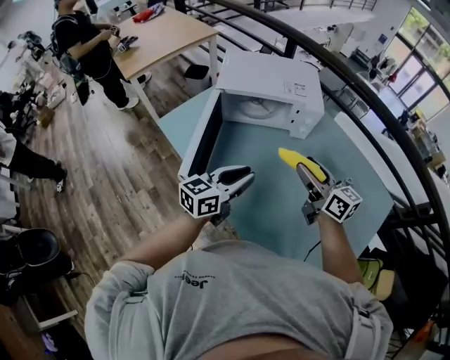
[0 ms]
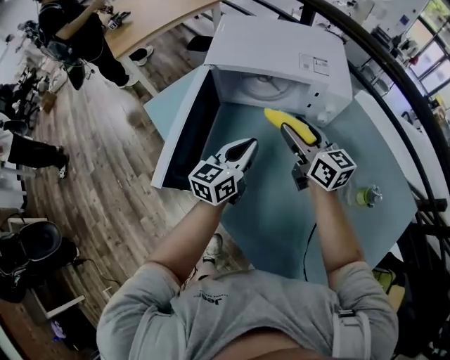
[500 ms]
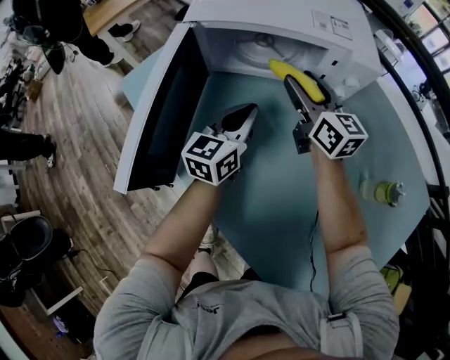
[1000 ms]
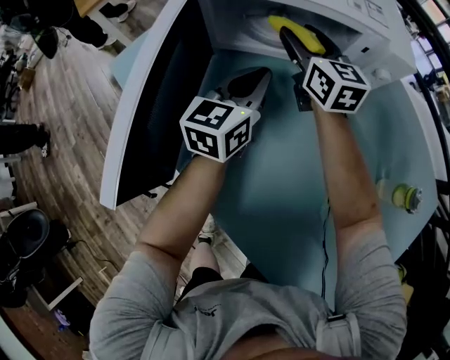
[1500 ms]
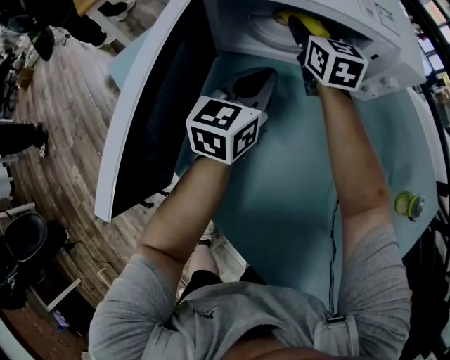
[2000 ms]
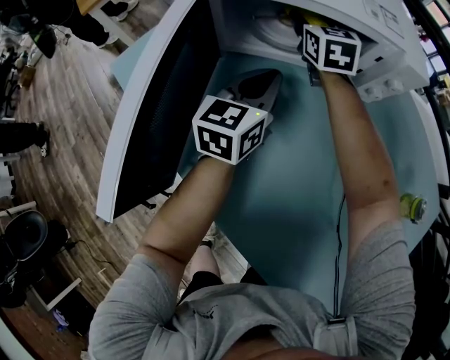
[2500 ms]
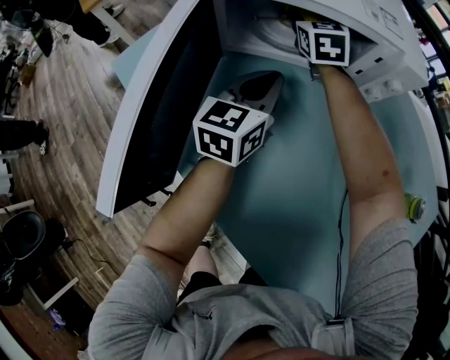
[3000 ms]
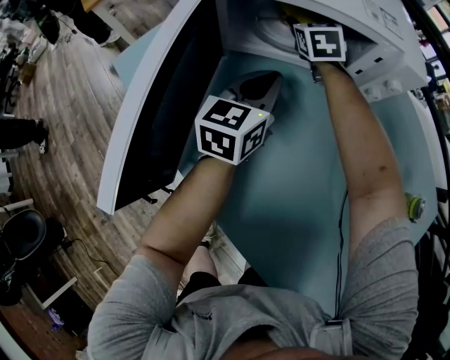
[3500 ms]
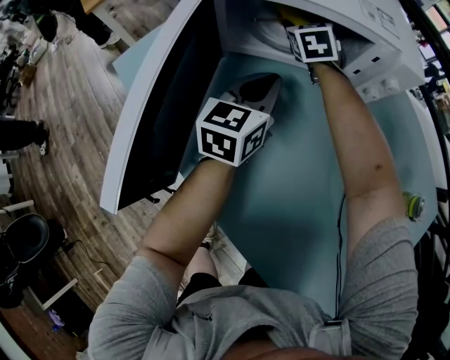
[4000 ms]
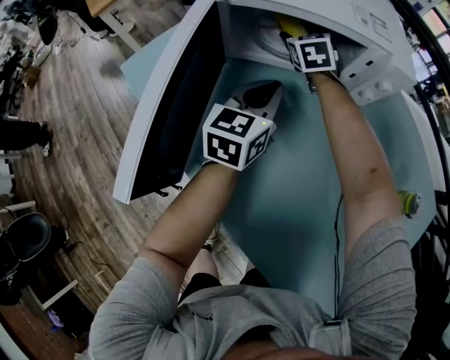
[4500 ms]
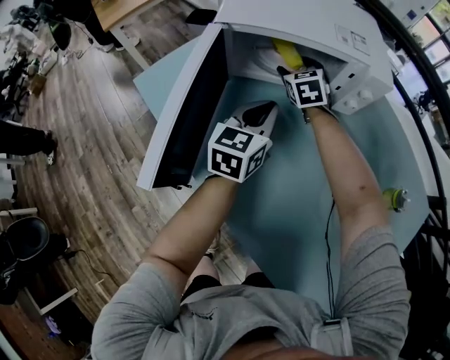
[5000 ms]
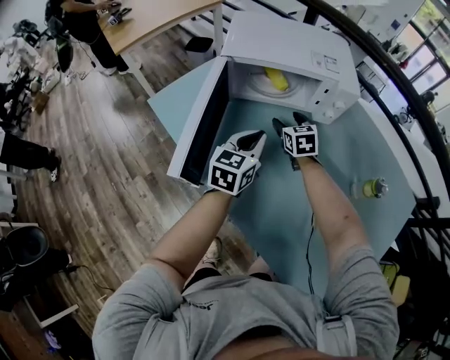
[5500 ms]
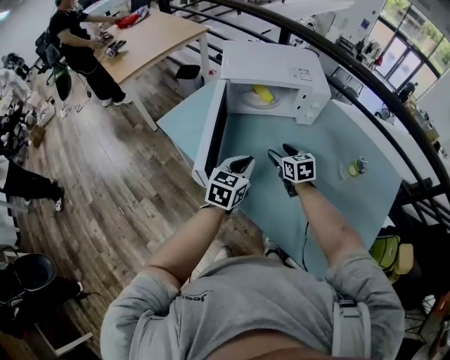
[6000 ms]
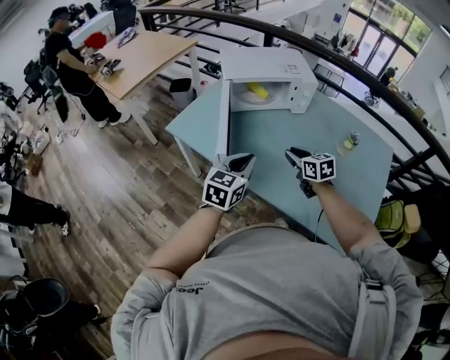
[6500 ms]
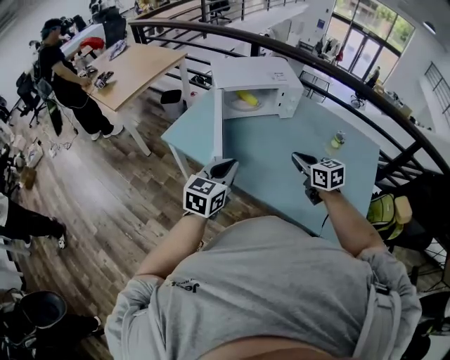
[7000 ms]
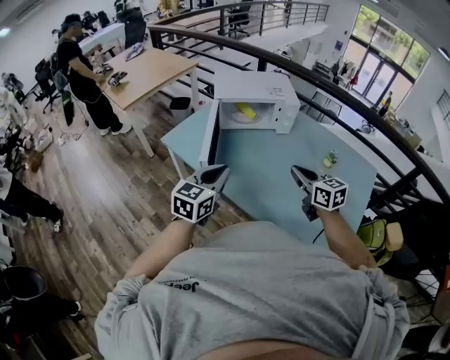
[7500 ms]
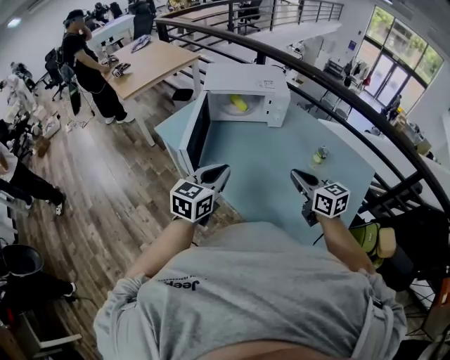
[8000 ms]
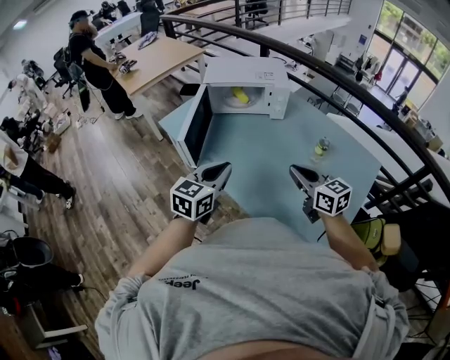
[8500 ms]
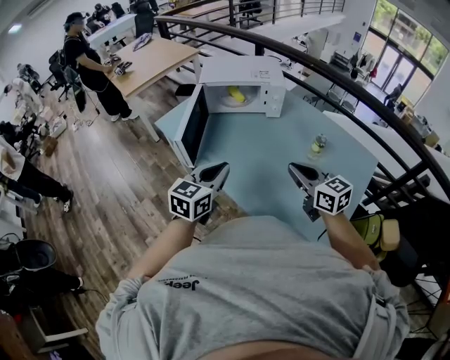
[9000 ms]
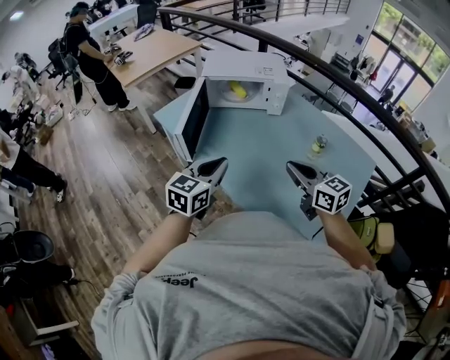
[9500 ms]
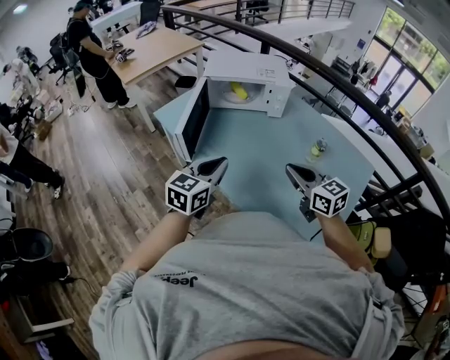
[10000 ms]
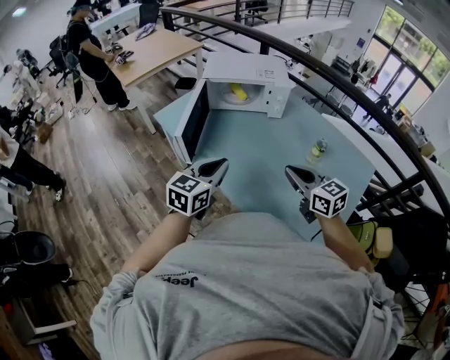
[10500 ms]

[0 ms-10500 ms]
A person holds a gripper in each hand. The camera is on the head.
0 ms to 2000 ms: Both grippers move forward and downward, roughly 35 cm. The left gripper changes its angle by some 20 degrees. Meanwhile the right gripper rotates approximately 30 degrees.
2000 ms to 4000 ms: The right gripper shifts by some 5 cm, and rotates roughly 20 degrees.
4000 ms to 6500 ms: The left gripper is displaced backward and upward by some 35 cm, and turns by about 20 degrees; the right gripper travels backward by approximately 40 cm, turns by approximately 30 degrees, and closes its fingers.
6500 ms to 8500 ms: Both grippers move to the right, backward and upward, some 20 cm. The right gripper rotates roughly 20 degrees.
8500 ms to 10500 ms: The grippers make only small movements.

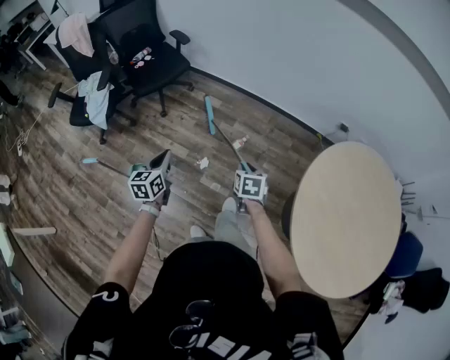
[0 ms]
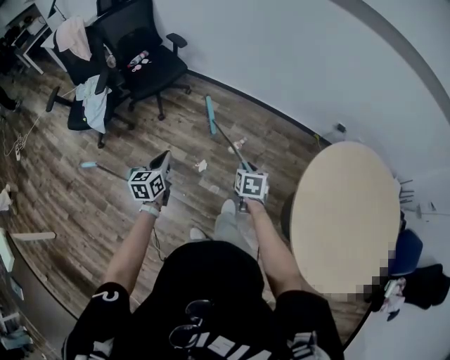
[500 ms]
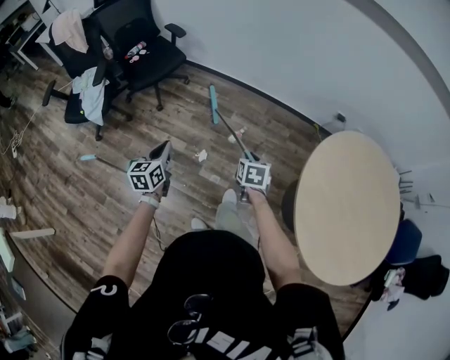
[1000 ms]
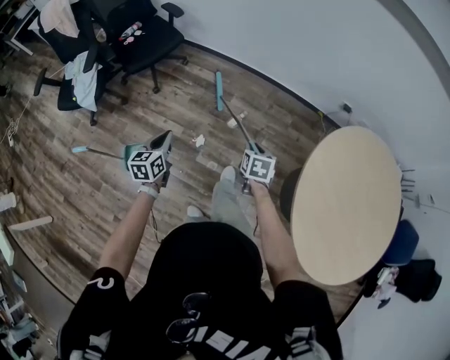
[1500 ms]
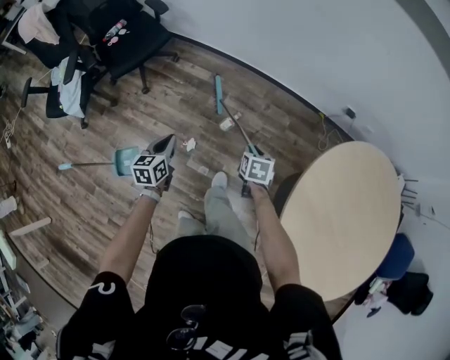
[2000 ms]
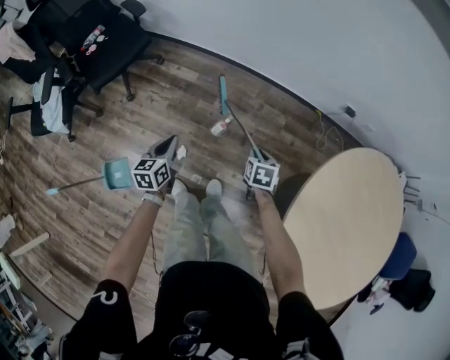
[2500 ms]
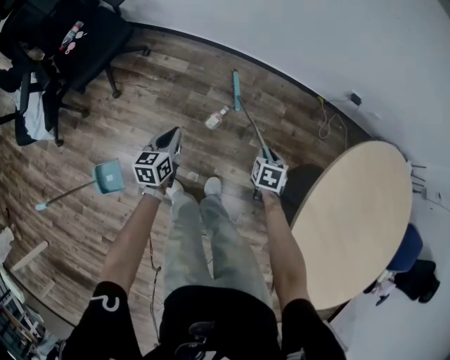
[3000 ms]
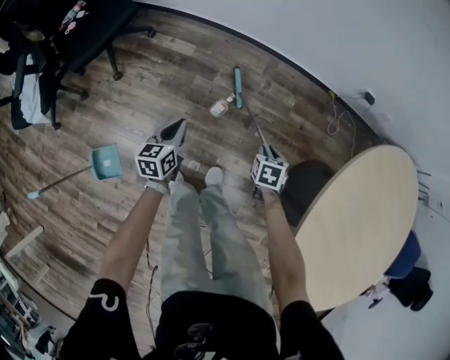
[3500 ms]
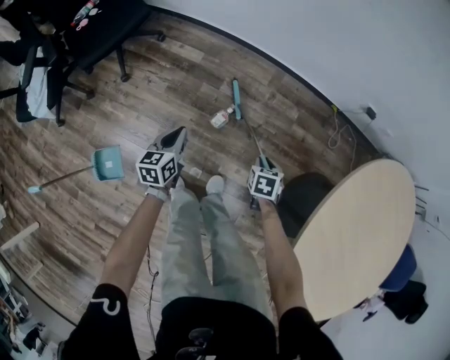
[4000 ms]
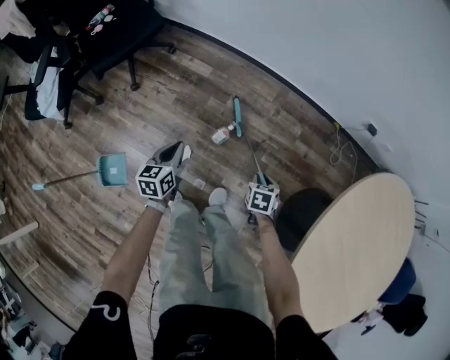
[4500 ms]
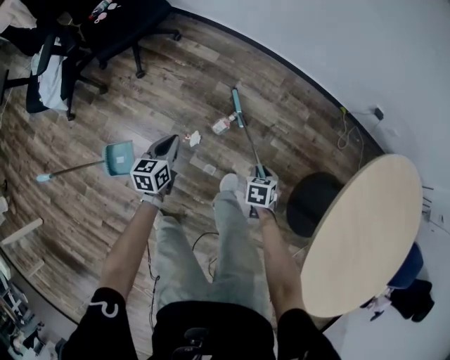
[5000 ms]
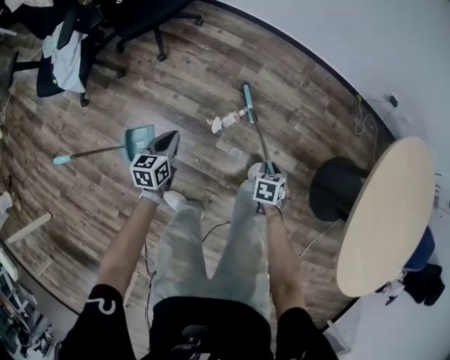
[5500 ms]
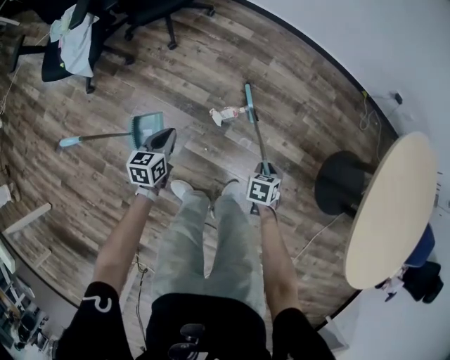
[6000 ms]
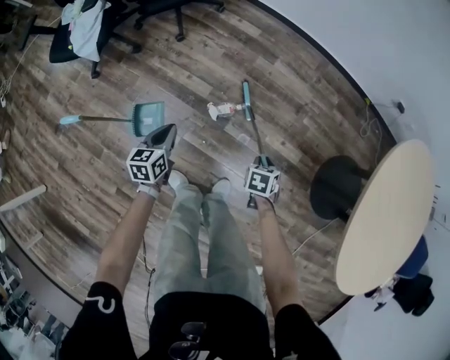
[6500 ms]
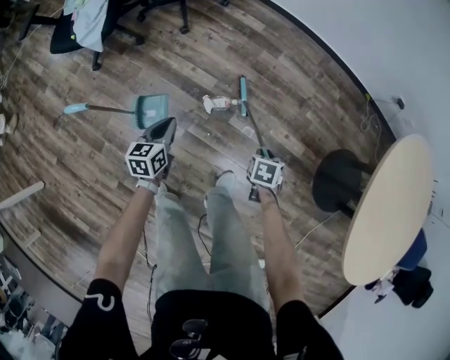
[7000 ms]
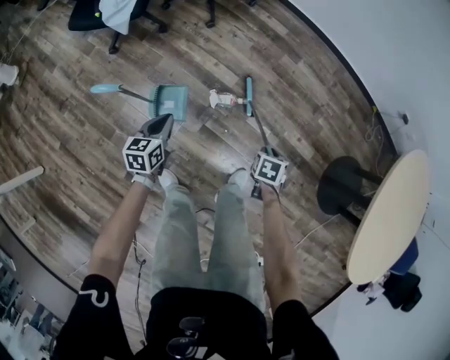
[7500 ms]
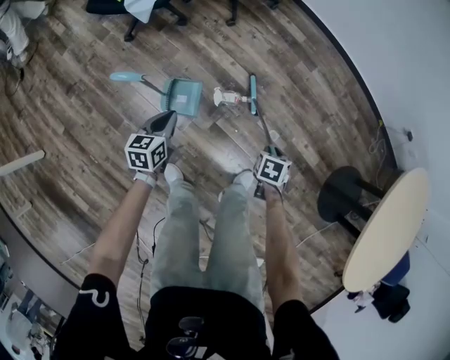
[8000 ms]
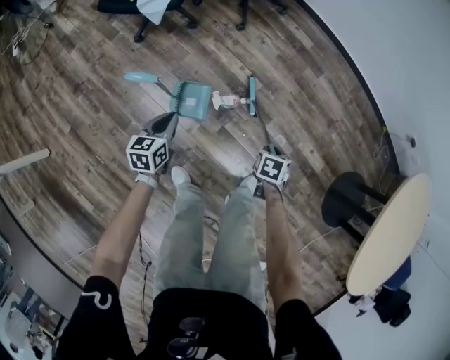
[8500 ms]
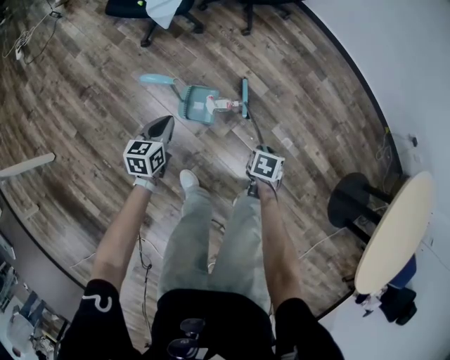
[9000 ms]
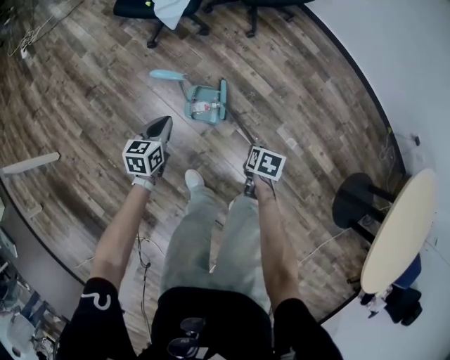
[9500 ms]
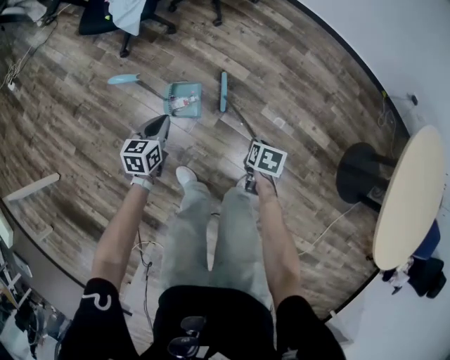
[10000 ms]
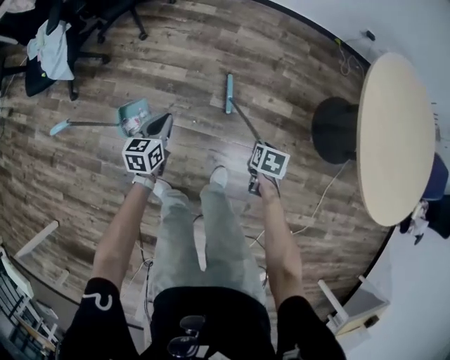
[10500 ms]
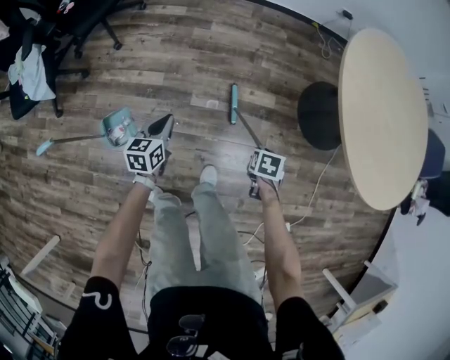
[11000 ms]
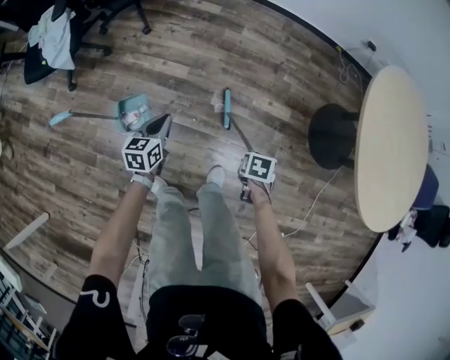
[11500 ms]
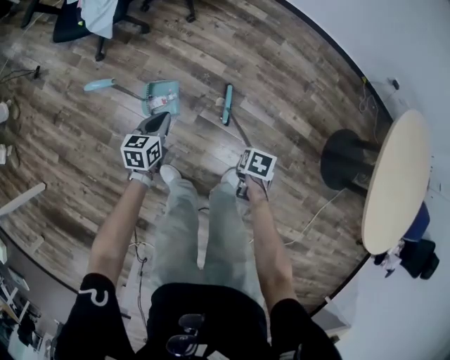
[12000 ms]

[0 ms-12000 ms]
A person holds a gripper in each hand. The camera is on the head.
0 ms to 2000 ms: The two grippers go about 25 cm forward, downward and to the right.
2000 ms to 4000 ms: The left gripper shifts some 25 cm downward and forward. Meanwhile the right gripper heads downward, covering roughly 25 cm.
4000 ms to 6000 ms: Both grippers move backward and to the left, about 40 cm.
6000 ms to 8000 ms: Both grippers move to the left and backward, approximately 25 cm.
8000 ms to 10000 ms: Both grippers move backward, approximately 5 cm. The right gripper goes to the left and returns, about 15 cm each way; the left gripper travels to the left and back again, some 10 cm each way.

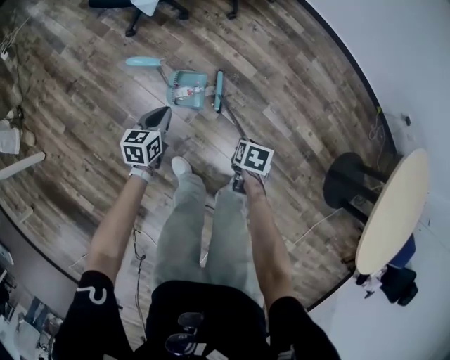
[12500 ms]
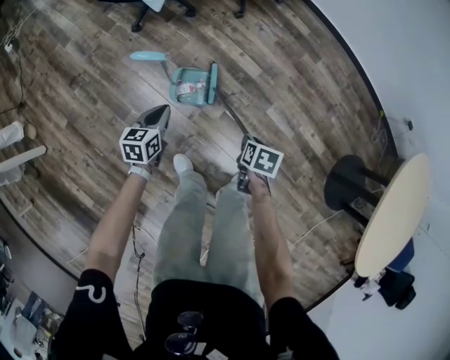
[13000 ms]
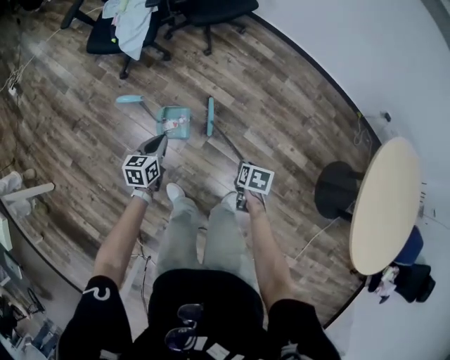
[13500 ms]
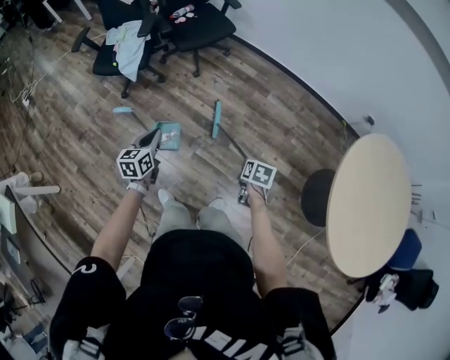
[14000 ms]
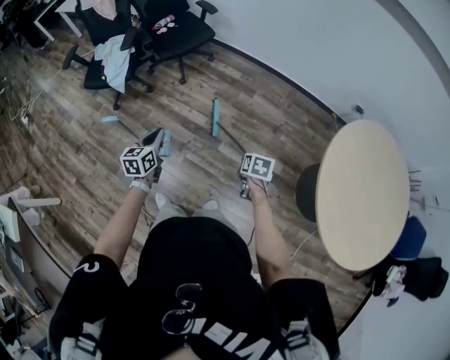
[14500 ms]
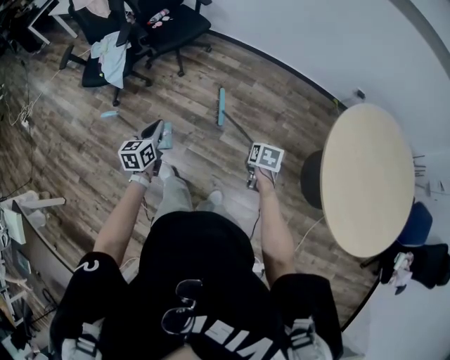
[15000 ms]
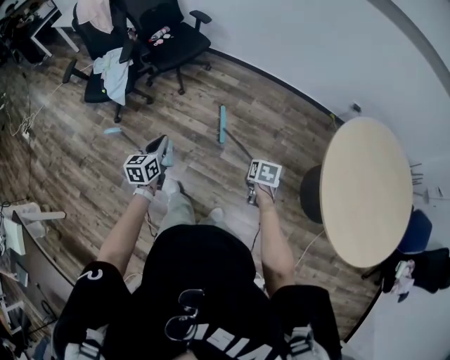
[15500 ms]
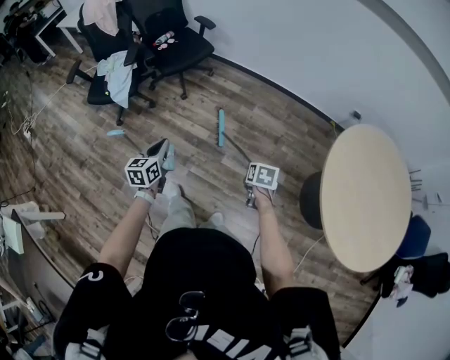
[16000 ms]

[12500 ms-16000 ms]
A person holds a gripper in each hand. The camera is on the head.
12500 ms to 14500 ms: The right gripper moves to the right and upward, approximately 40 cm, while the left gripper is displaced upward and to the right by roughly 40 cm.
14500 ms to 16000 ms: There are only small adjustments of the grippers.

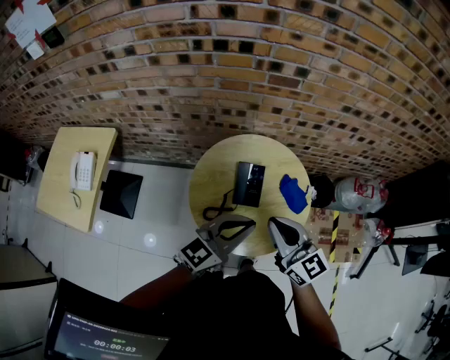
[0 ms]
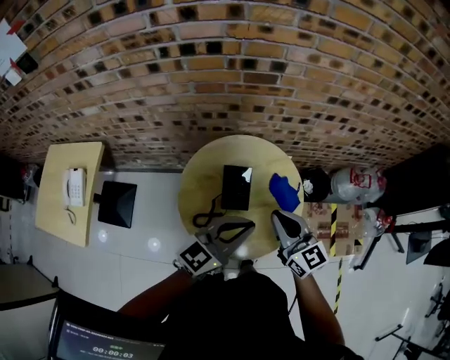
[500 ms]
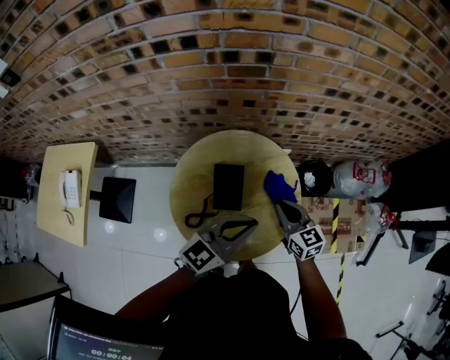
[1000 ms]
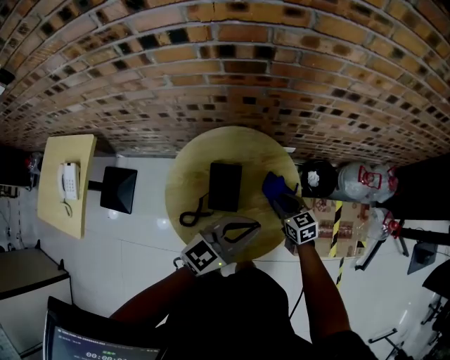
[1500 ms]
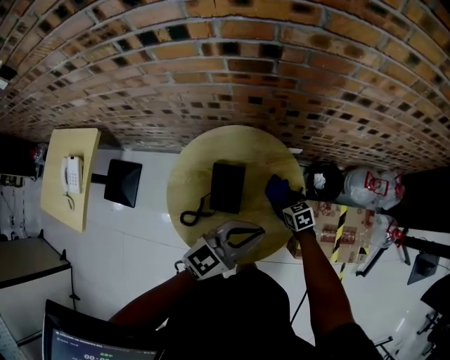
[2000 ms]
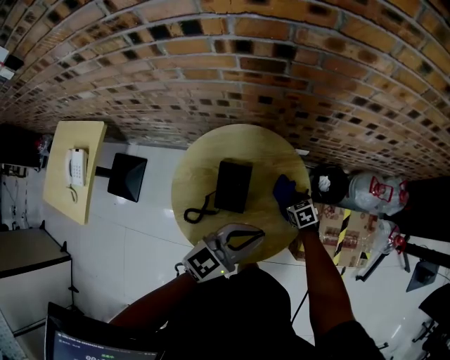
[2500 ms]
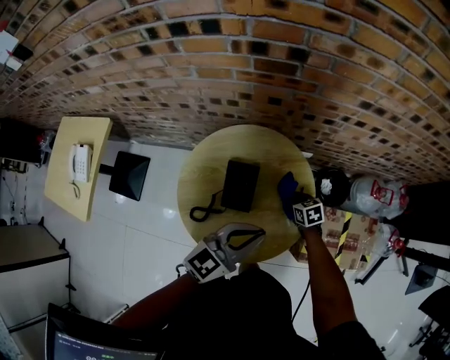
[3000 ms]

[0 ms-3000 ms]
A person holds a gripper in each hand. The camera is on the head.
0 ms to 1500 ms: The right gripper shifts roughly 35 cm downward, forward and to the right, angles its fingers downward, by approximately 30 degrees, and opens. The left gripper heads to the right, forward and downward, covering roughly 20 cm.
1500 ms to 3000 ms: The right gripper moves downward, roughly 10 cm, and opens, then closes again.
